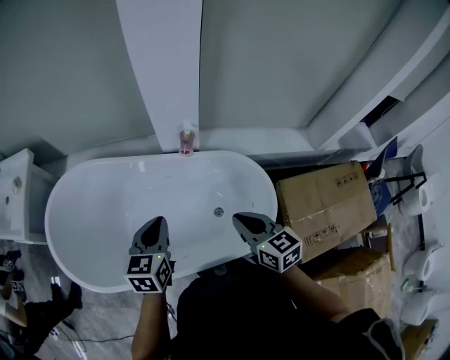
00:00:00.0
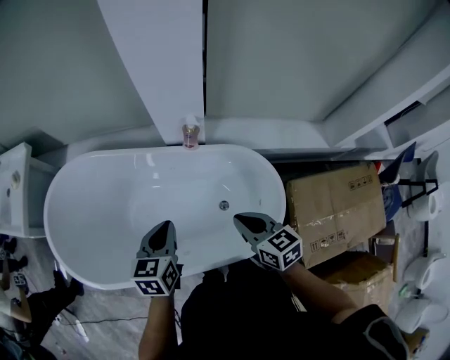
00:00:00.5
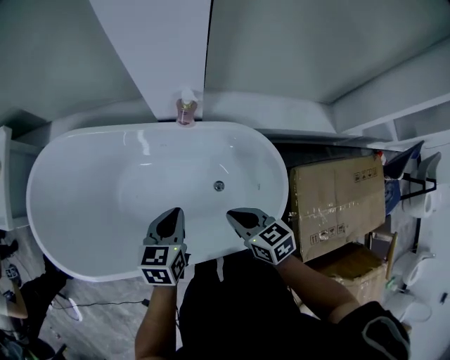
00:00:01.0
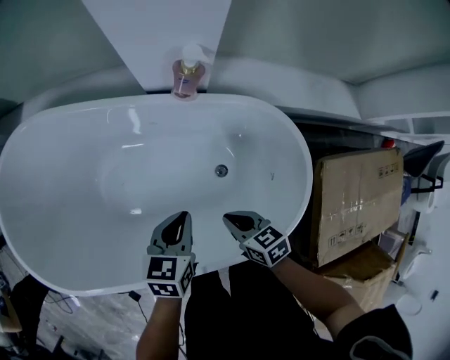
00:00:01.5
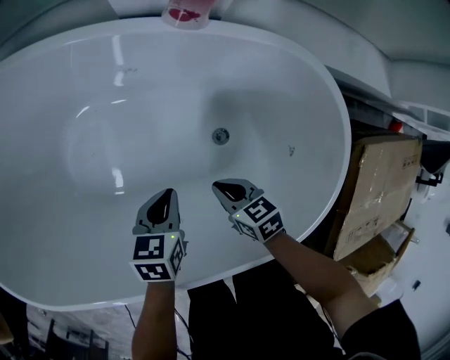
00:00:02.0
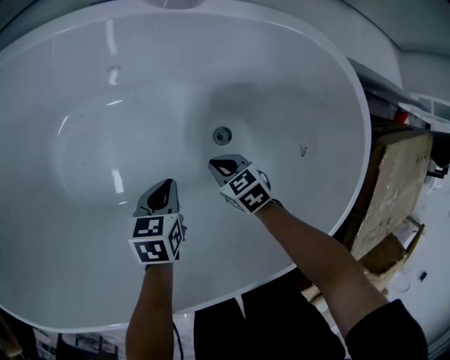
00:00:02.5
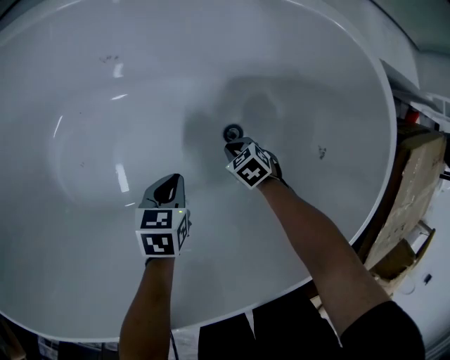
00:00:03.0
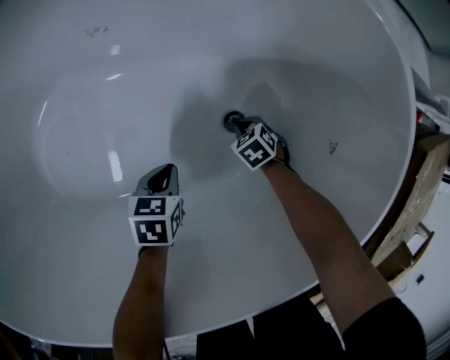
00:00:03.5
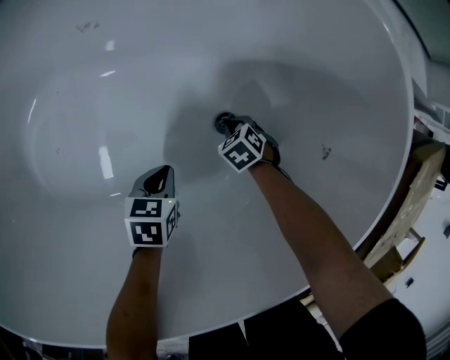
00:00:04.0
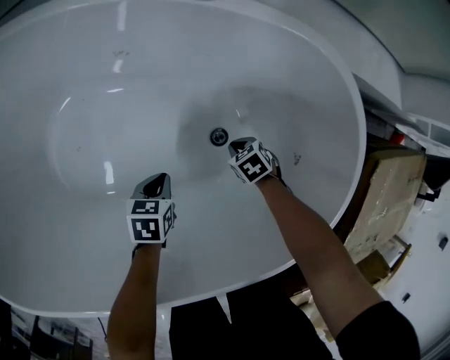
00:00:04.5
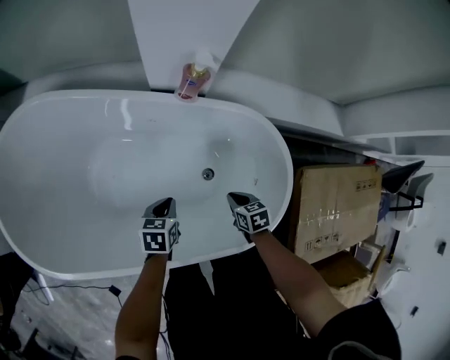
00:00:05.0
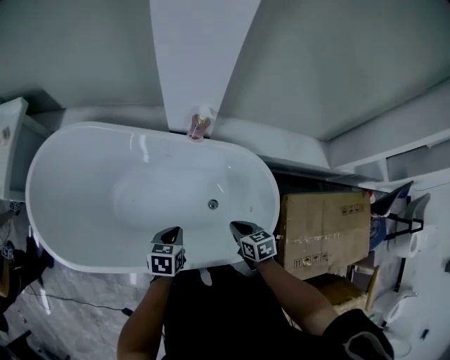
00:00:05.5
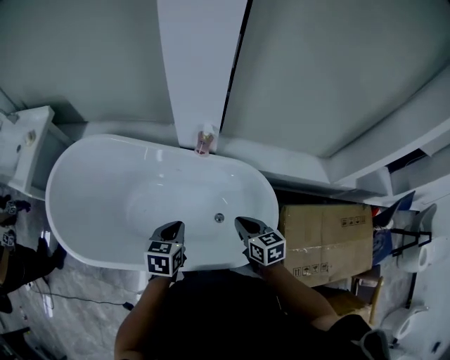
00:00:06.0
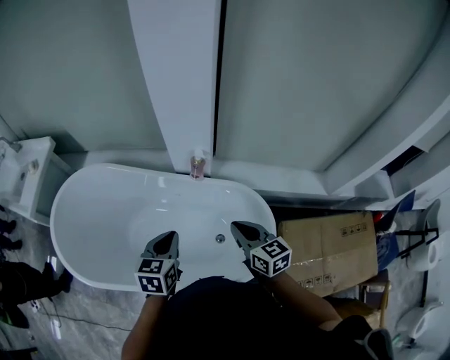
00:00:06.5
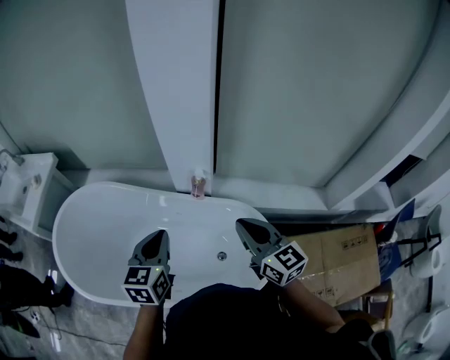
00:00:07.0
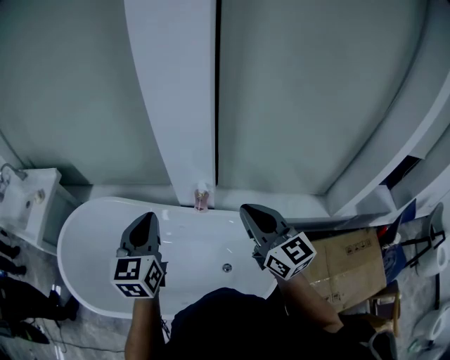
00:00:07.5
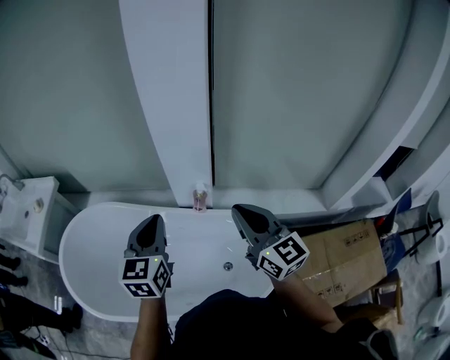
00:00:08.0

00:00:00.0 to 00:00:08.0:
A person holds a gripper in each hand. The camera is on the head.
00:00:00.0 to 00:00:02.0: Both grippers travel together downward, some 60 cm. The right gripper swivels roughly 30 degrees. The left gripper swivels approximately 30 degrees.
00:00:02.0 to 00:00:04.0: Both grippers move downward, roughly 30 cm. The right gripper tips its fingers downward by about 30 degrees.
00:00:04.0 to 00:00:06.0: Both grippers travel together upward, some 70 cm. The right gripper tips its fingers upward by some 50 degrees. The left gripper turns by approximately 30 degrees.
00:00:06.0 to 00:00:08.0: The left gripper travels upward and forward by approximately 30 cm, and tips its fingers upward by roughly 30 degrees, while the right gripper is displaced upward by about 30 cm, and tilts its fingers about 40 degrees upward.

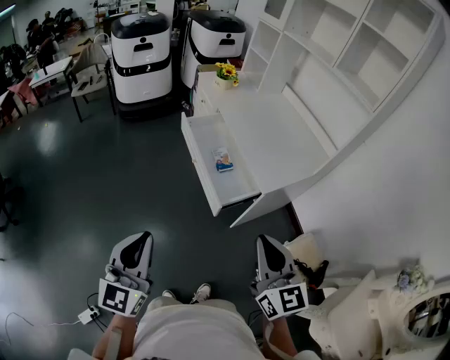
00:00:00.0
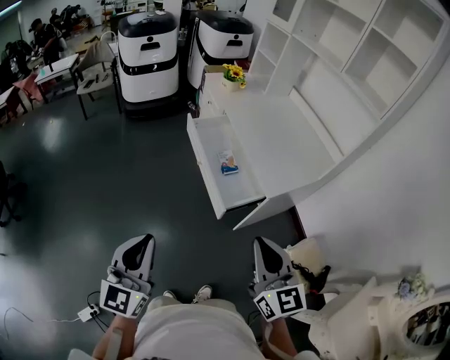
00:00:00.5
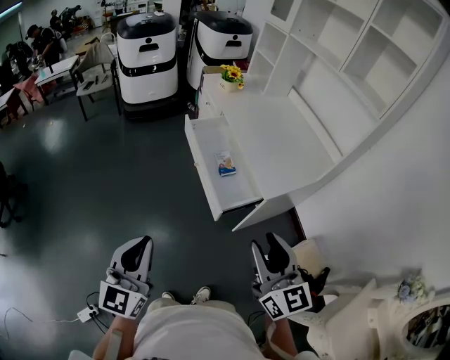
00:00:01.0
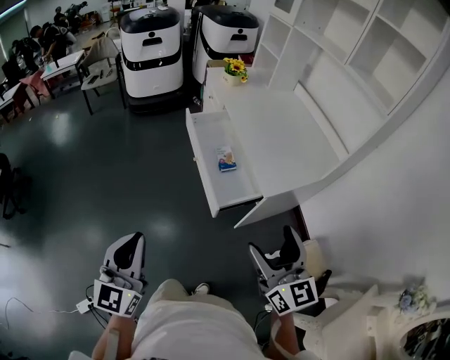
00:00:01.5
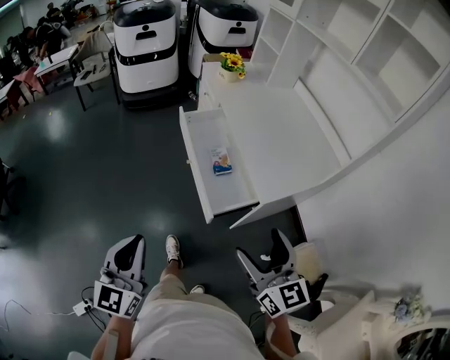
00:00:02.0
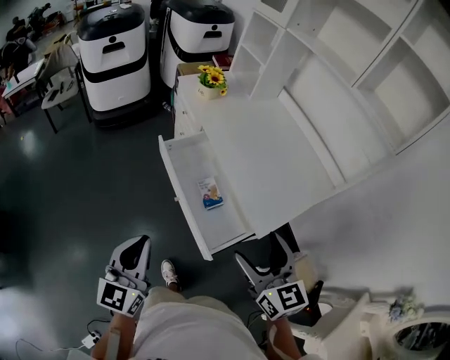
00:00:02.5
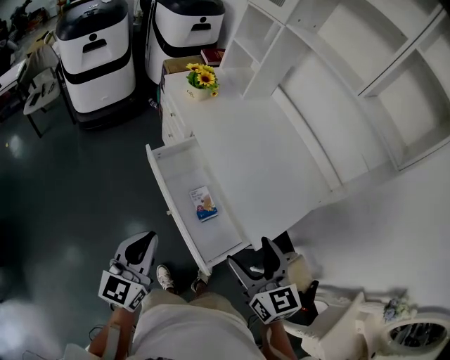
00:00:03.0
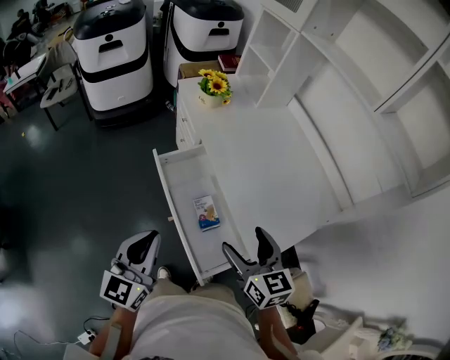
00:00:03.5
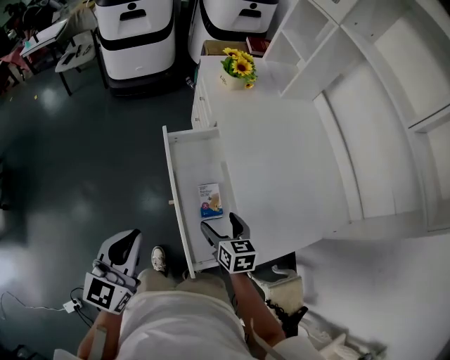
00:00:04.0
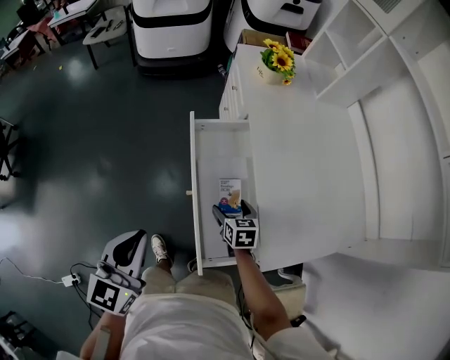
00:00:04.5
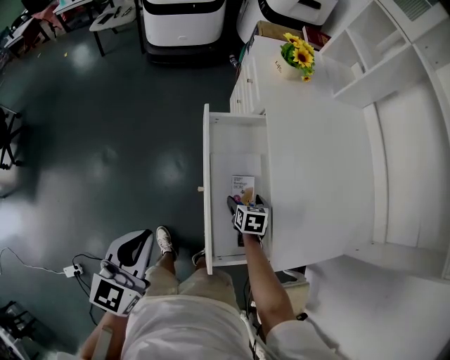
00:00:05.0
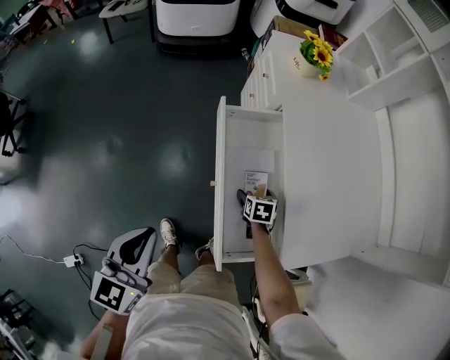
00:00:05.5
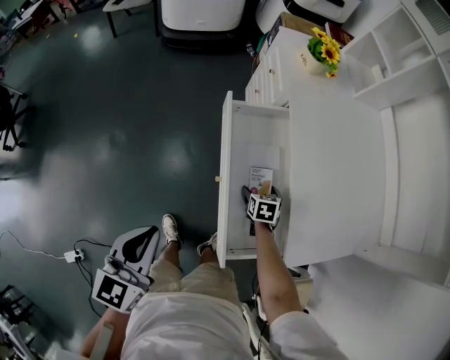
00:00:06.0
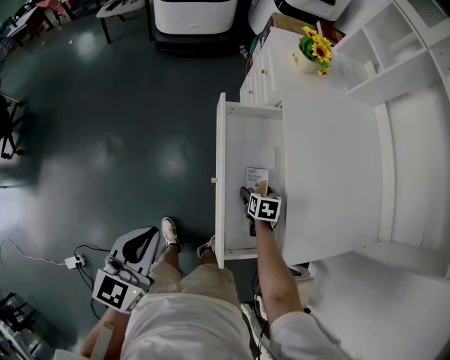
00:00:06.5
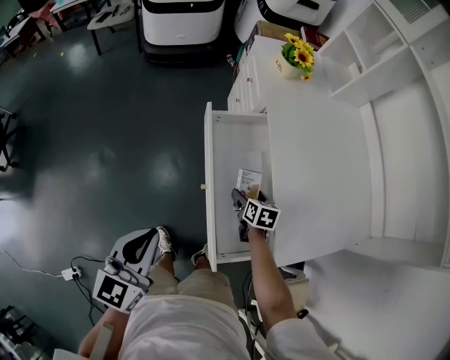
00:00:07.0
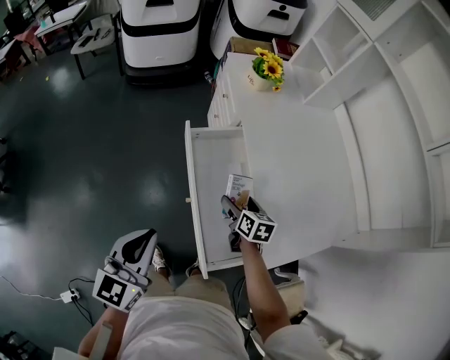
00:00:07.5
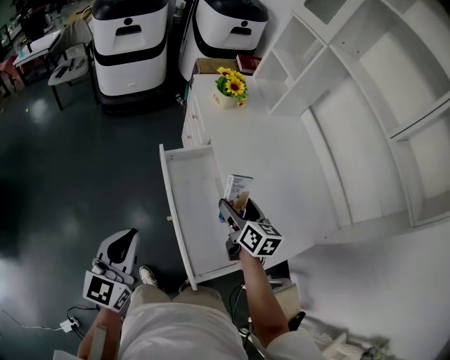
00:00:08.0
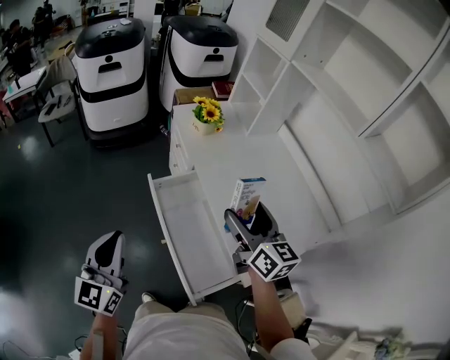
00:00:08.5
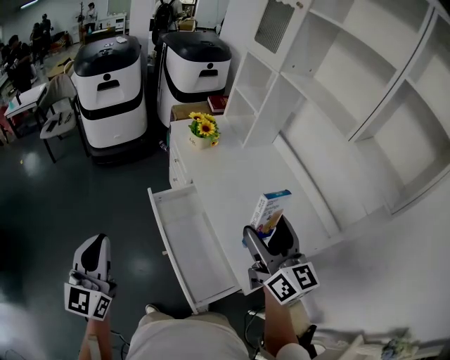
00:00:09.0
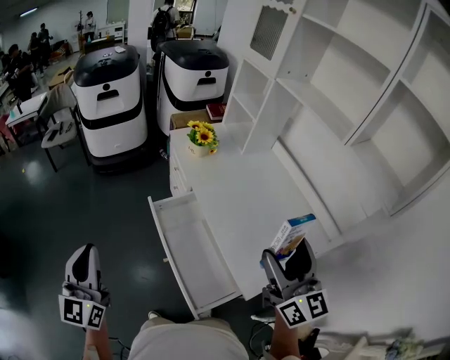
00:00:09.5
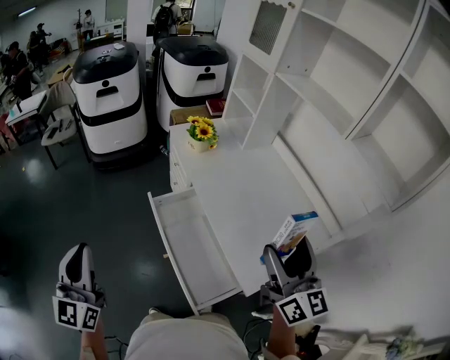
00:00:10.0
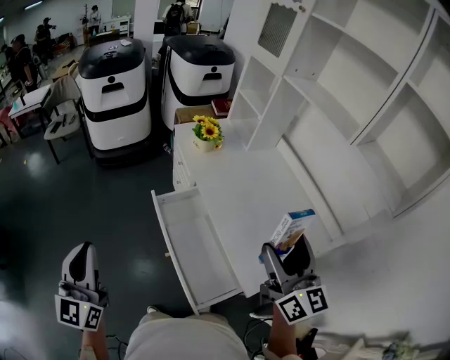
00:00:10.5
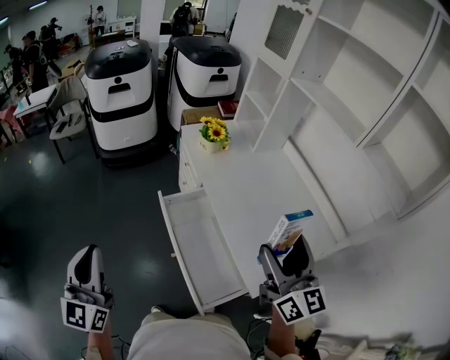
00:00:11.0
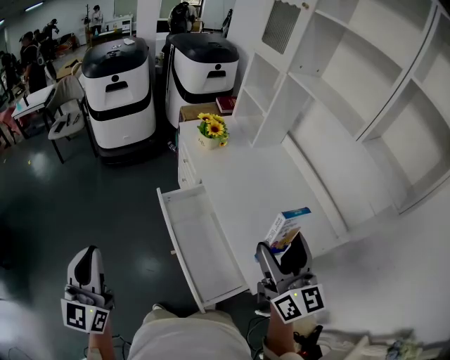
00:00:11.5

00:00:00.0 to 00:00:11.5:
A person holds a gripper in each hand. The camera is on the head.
00:00:00.0 to 00:00:02.0: The left gripper goes some 10 cm forward and downward; the right gripper is displaced forward, downward and to the right by about 10 cm, and opens up.
00:00:02.0 to 00:00:04.0: The left gripper travels forward by some 30 cm, while the right gripper heads forward and downward, covering roughly 40 cm, and rotates roughly 30 degrees.
00:00:04.0 to 00:00:06.0: The left gripper travels to the left and downward by roughly 10 cm. The right gripper is displaced downward by roughly 20 cm, and swivels some 30 degrees.
00:00:06.0 to 00:00:07.5: The right gripper heads upward, covering some 15 cm, and changes its angle by approximately 30 degrees; the left gripper shifts by some 10 cm.
00:00:07.5 to 00:00:09.5: The left gripper shifts about 20 cm upward and to the left, and rotates about 20 degrees. Meanwhile the right gripper shifts approximately 40 cm upward, and angles its fingers upward, by about 50 degrees.
00:00:09.5 to 00:00:11.5: The grippers make only small movements.

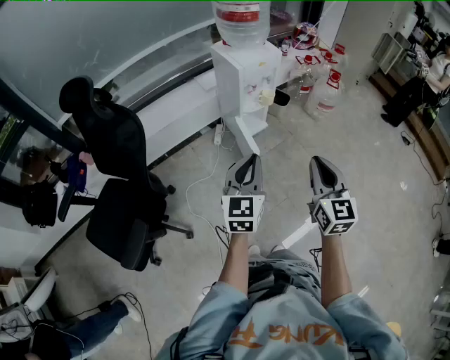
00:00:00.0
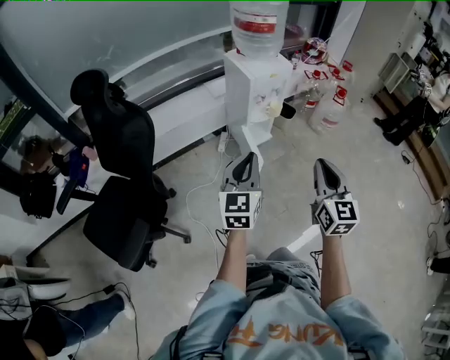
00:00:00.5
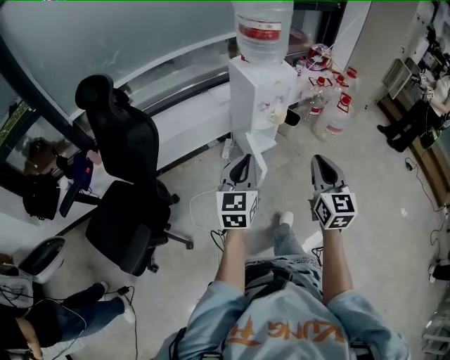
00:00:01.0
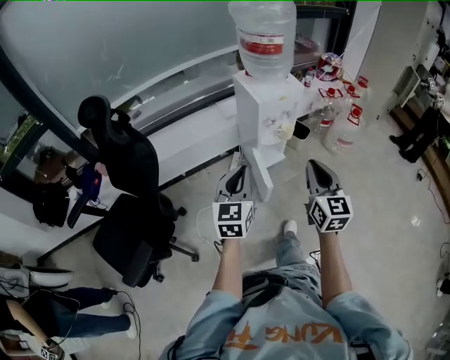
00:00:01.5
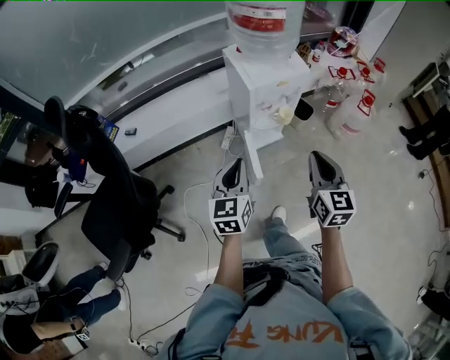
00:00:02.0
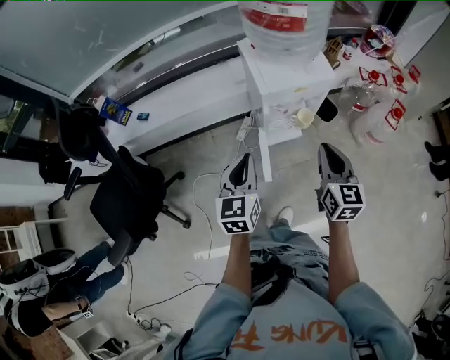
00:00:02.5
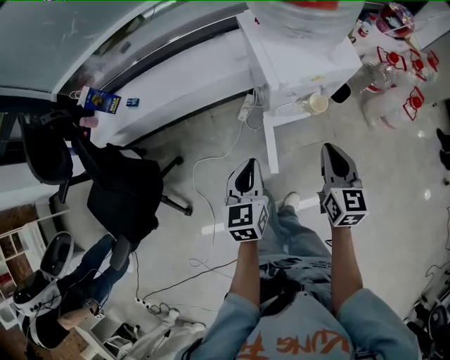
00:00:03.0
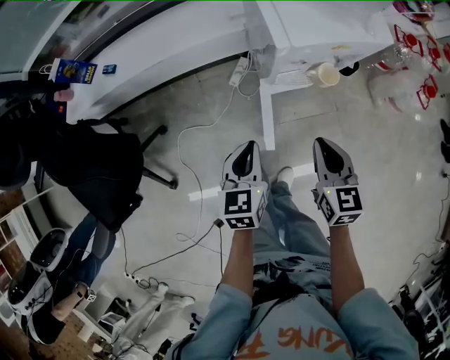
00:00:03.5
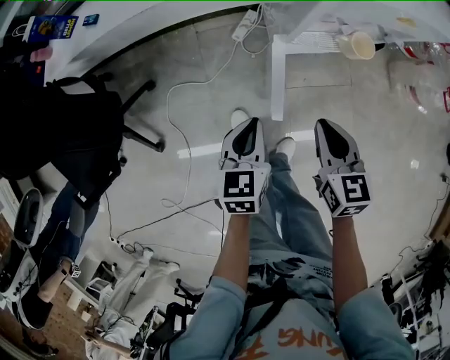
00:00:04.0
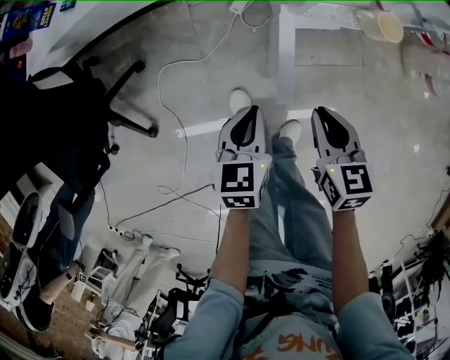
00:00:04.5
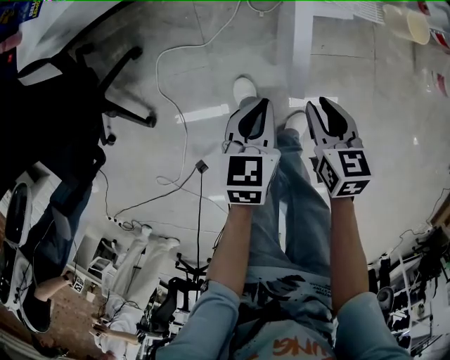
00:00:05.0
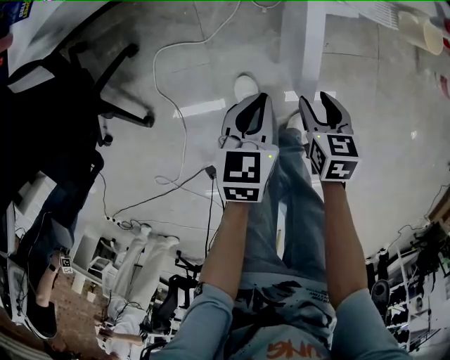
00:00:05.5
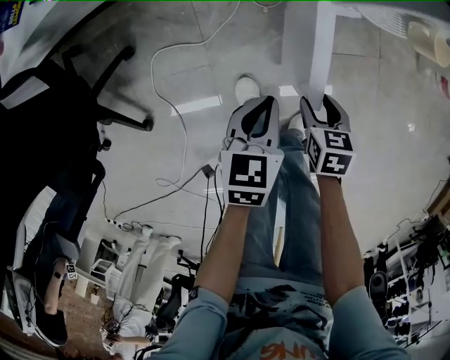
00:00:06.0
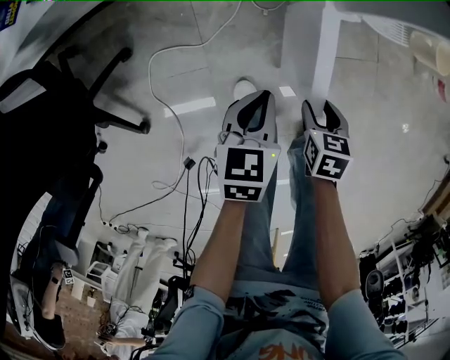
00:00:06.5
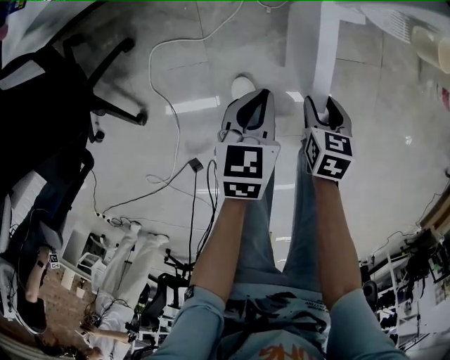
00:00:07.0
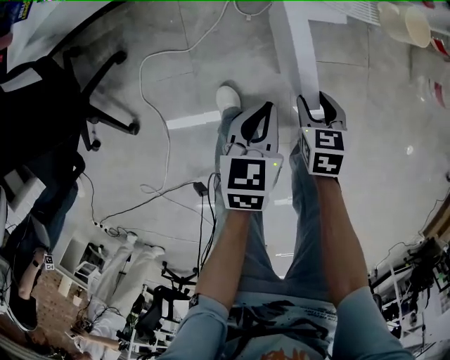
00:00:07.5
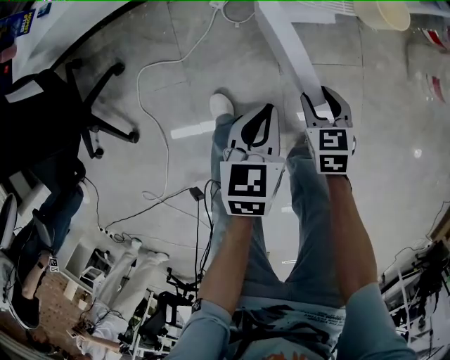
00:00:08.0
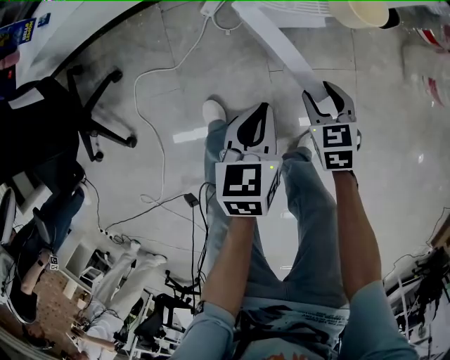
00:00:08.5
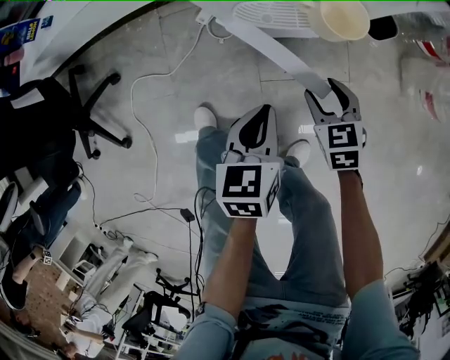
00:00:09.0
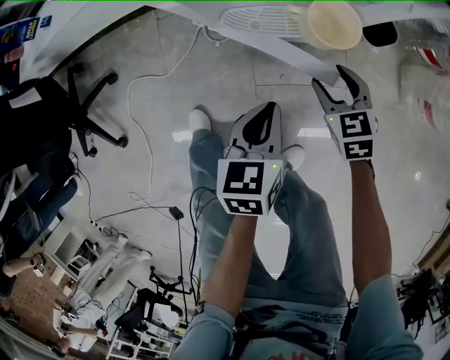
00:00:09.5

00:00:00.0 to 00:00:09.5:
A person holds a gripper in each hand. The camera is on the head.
00:00:00.0 to 00:00:02.0: The two grippers go about 25 cm forward. The left gripper turns by about 20 degrees.
00:00:02.0 to 00:00:04.0: Both grippers move downward, about 30 cm. The left gripper swivels roughly 30 degrees. Meanwhile the right gripper turns by some 30 degrees.
00:00:04.0 to 00:00:05.5: The right gripper shifts approximately 25 cm downward, changes its angle by some 20 degrees, and opens up. Meanwhile the left gripper heads downward, covering some 15 cm.
00:00:05.5 to 00:00:07.5: Both grippers travel together to the right, some 10 cm.
00:00:07.5 to 00:00:09.5: Both grippers travel together to the right and forward, roughly 25 cm. The right gripper turns by roughly 30 degrees.
